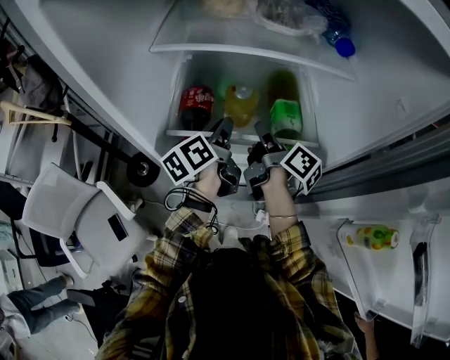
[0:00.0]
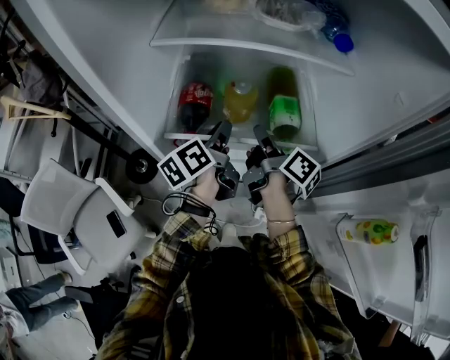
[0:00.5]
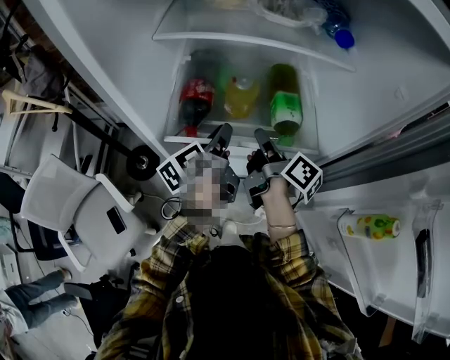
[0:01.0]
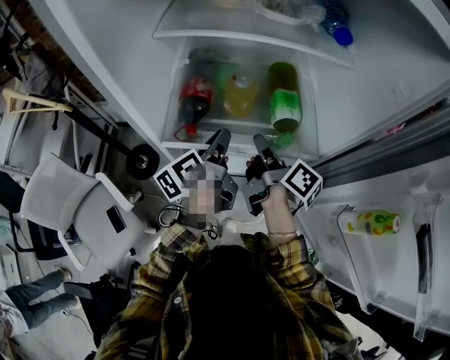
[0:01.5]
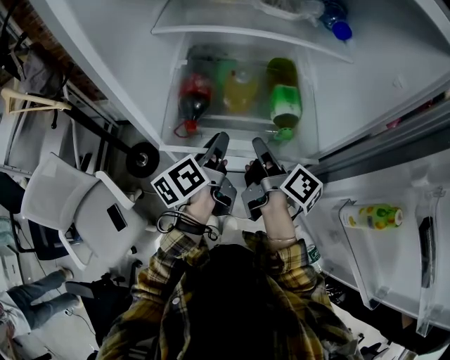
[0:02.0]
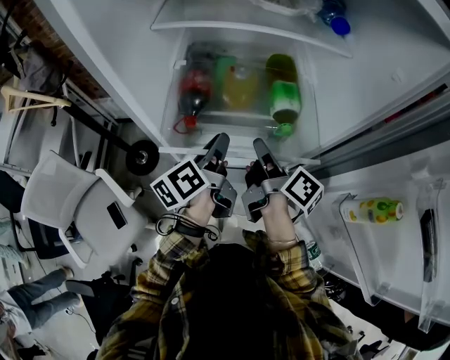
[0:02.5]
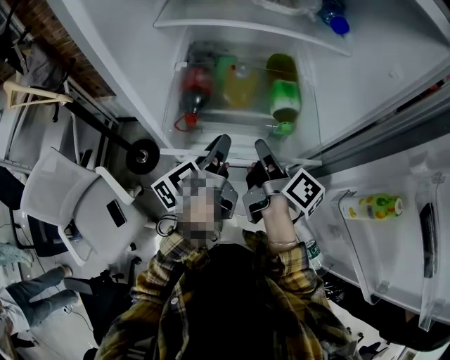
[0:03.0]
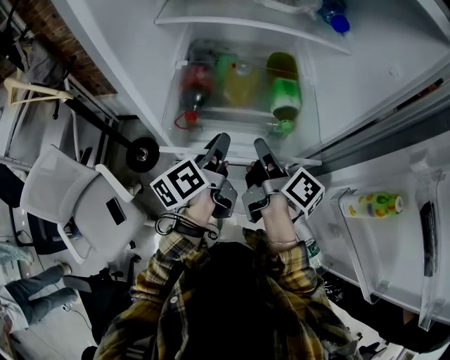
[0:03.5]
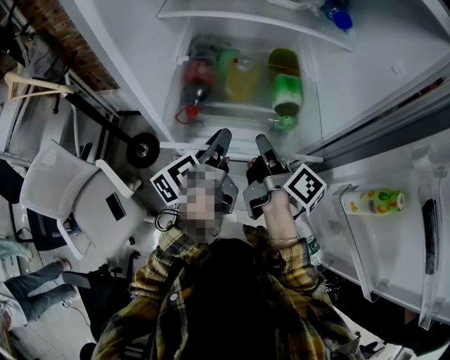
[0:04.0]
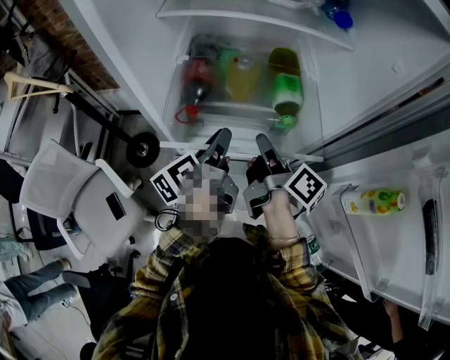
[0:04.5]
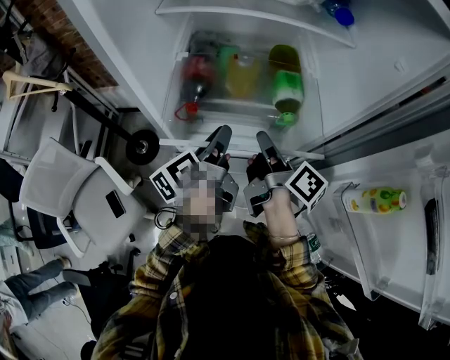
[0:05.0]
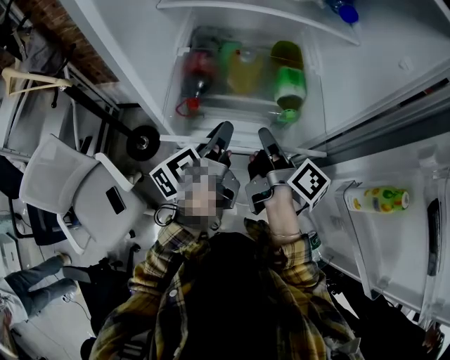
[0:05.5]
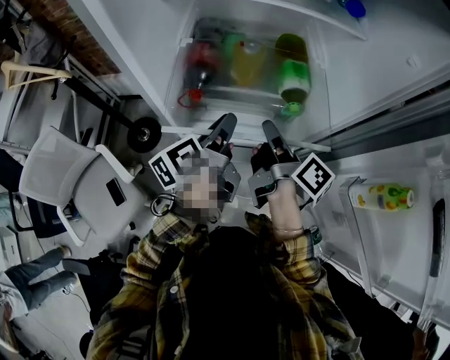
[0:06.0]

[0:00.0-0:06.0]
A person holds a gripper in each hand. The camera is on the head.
0:00.0 to 0:02.0: Both grippers travel together backward, about 10 cm.
0:02.0 to 0:04.0: The grippers make only small movements.
0:04.0 to 0:06.0: Both grippers stay about where they are.

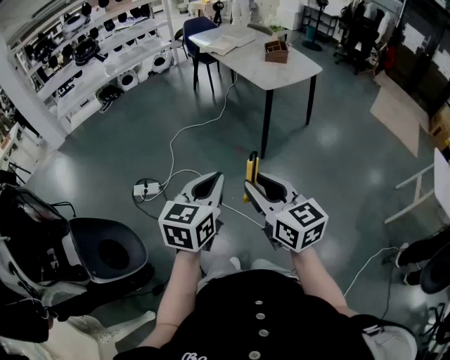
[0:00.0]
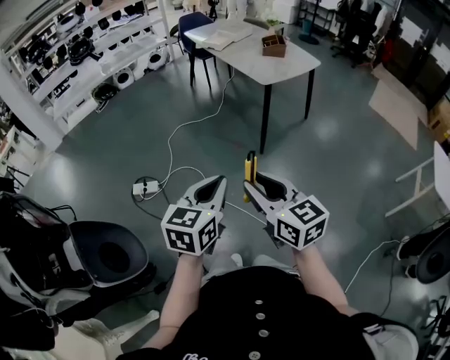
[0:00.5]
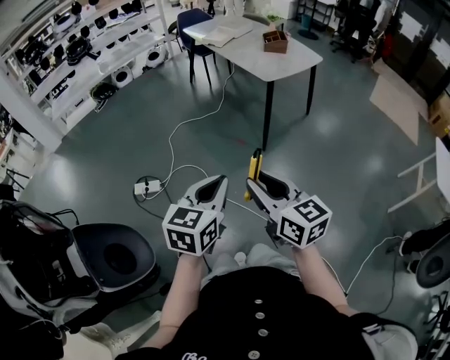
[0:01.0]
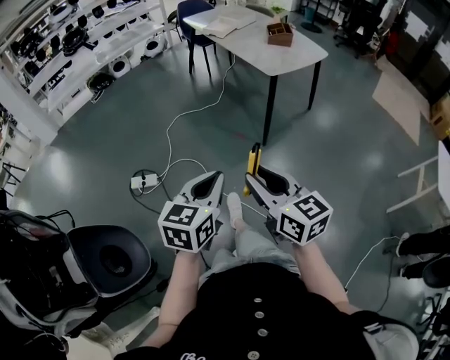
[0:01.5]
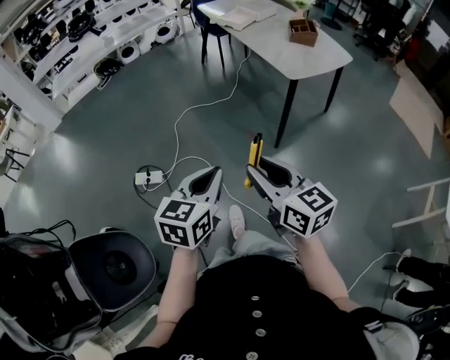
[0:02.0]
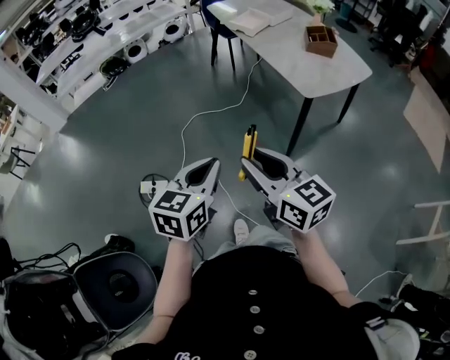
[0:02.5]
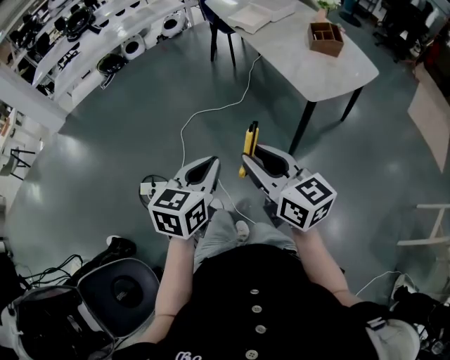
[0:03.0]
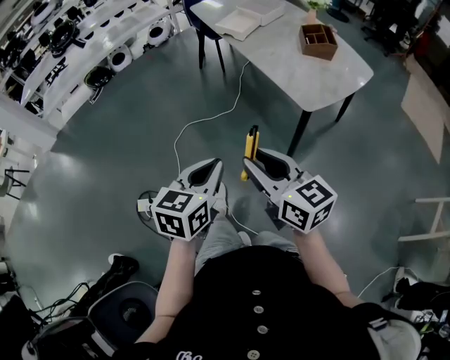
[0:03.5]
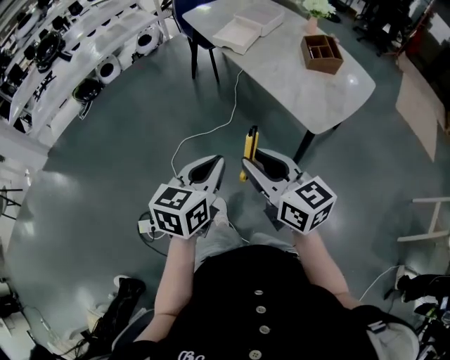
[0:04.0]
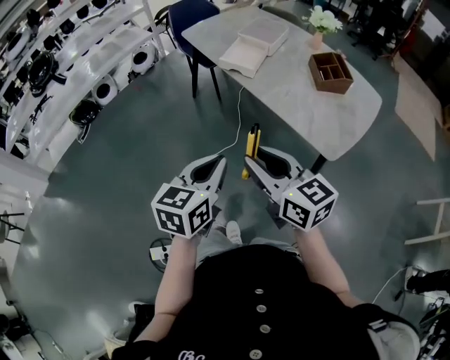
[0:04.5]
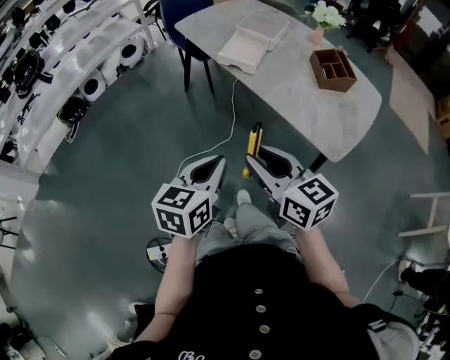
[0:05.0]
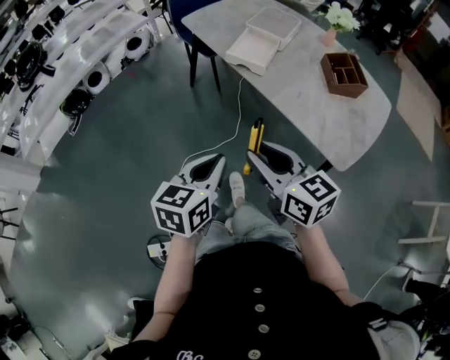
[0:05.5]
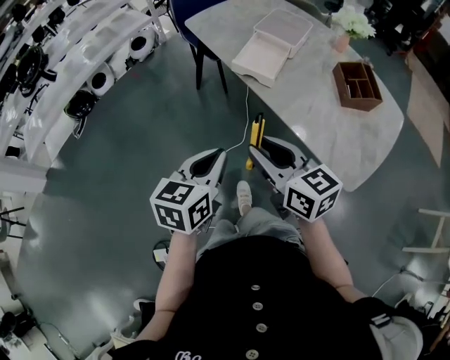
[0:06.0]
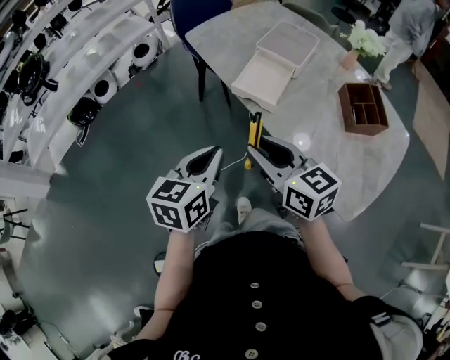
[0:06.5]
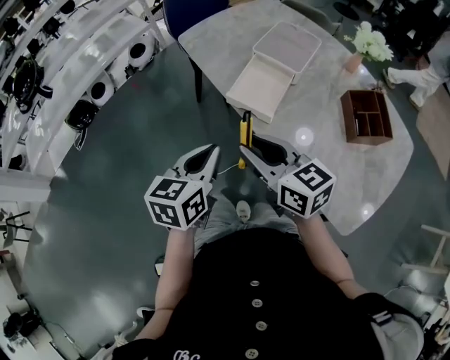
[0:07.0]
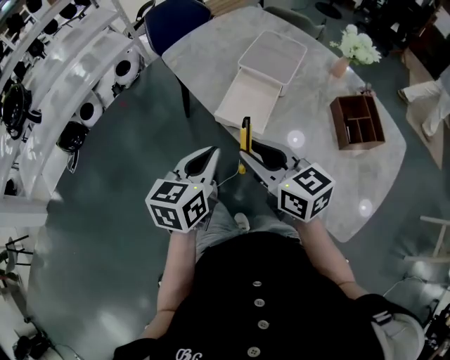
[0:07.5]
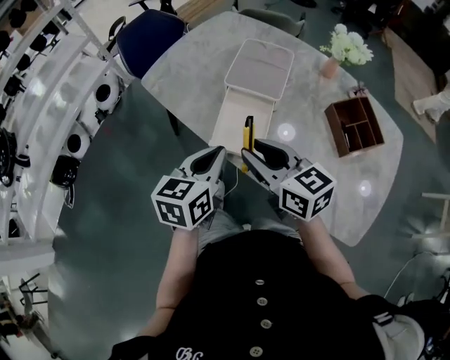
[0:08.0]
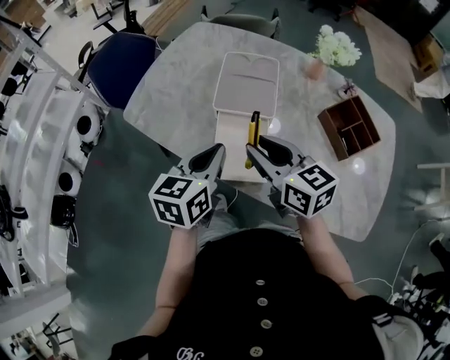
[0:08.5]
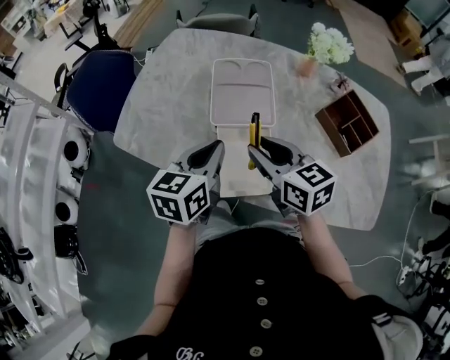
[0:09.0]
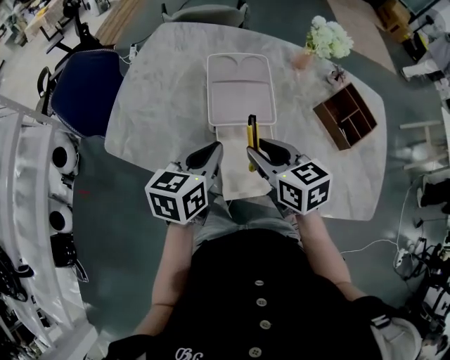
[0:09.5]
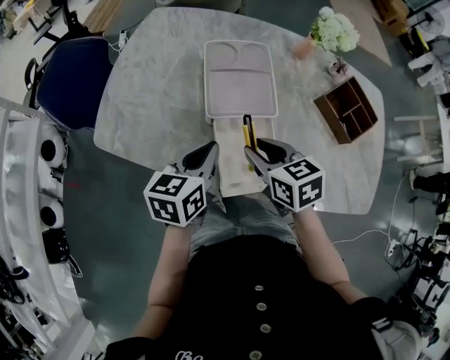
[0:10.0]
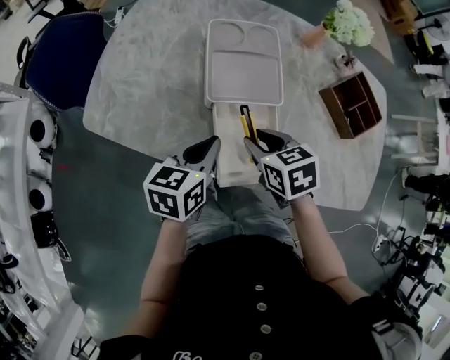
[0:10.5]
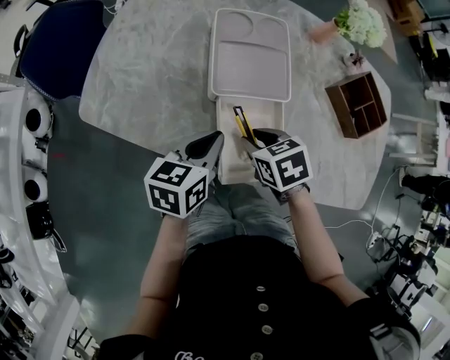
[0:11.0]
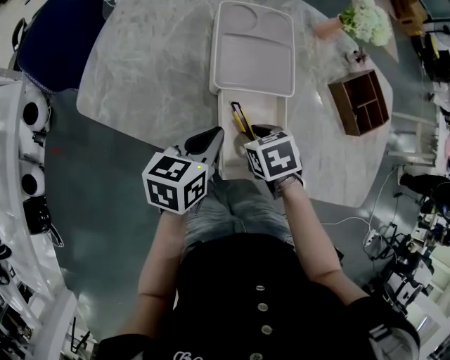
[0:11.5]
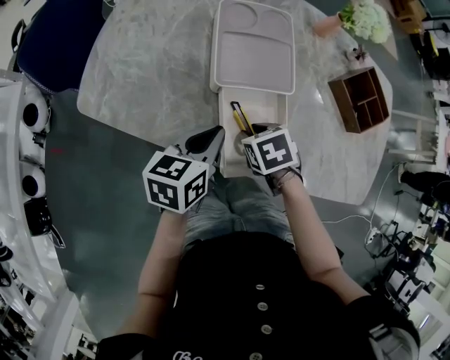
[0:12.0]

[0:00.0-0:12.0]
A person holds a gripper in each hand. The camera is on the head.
0:00.0 to 0:02.0: The grippers both shift forward by about 20 cm.
0:02.0 to 0:04.0: Both grippers are carried forward, roughly 40 cm.
0:04.0 to 0:06.0: The two grippers go roughly 30 cm forward.
0:06.0 to 0:08.0: Both grippers travel together forward, roughly 35 cm.
0:08.0 to 0:10.0: The right gripper moves about 20 cm, and turns by some 40 degrees. The left gripper moves approximately 20 cm, and turns by approximately 30 degrees.
0:10.0 to 0:12.0: The left gripper moves downward, about 5 cm, while the right gripper is displaced downward by about 10 cm, and tilts its fingers about 30 degrees downward.

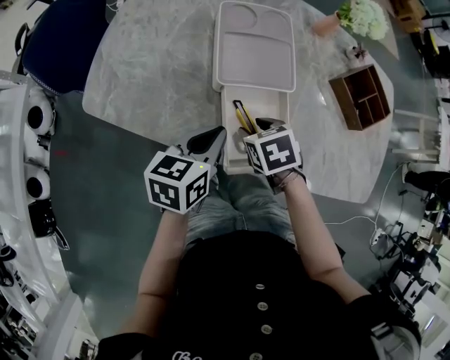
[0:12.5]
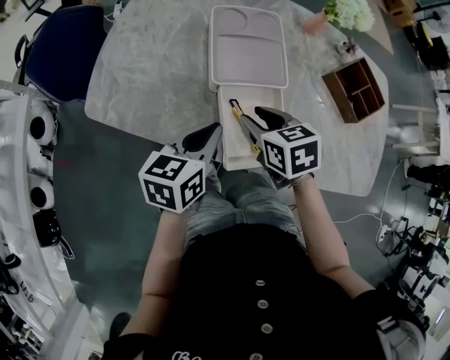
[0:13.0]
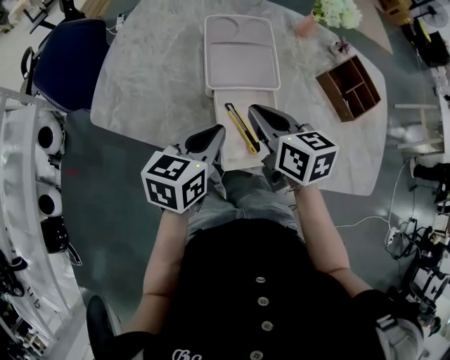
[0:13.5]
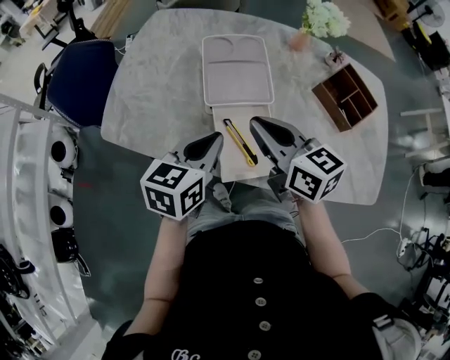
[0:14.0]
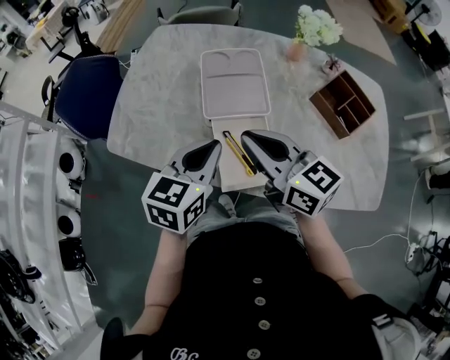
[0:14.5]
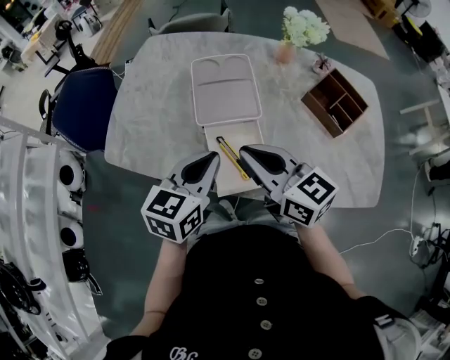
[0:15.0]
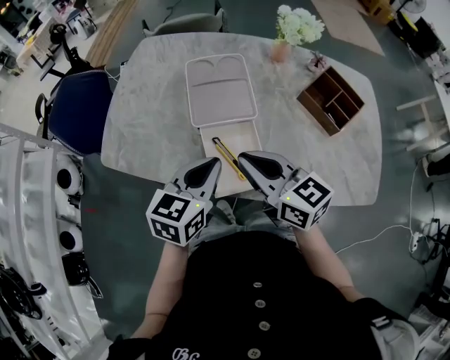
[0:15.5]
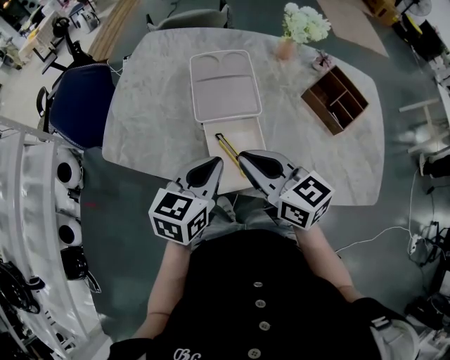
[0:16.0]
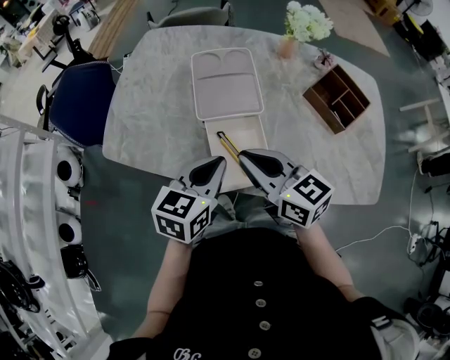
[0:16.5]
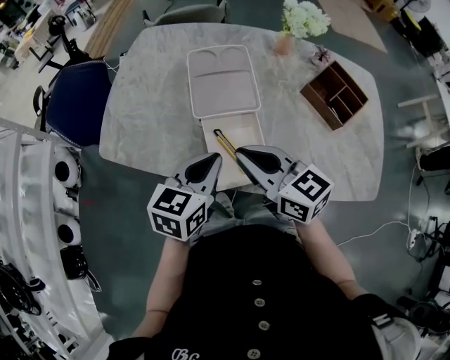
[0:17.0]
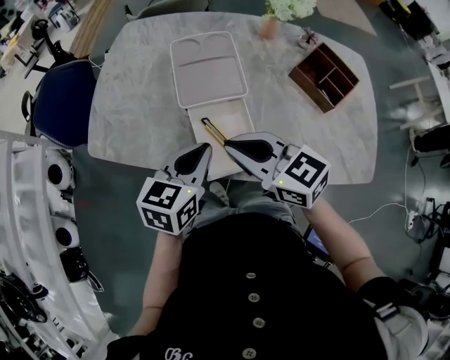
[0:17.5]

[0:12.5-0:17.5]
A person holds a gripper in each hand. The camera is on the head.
0:12.5 to 0:15.0: The right gripper goes some 20 cm upward, tips its fingers upward by about 60 degrees, and closes up. The left gripper travels upward by approximately 10 cm, and rotates some 20 degrees.
0:15.0 to 0:17.5: The grippers move only a little.

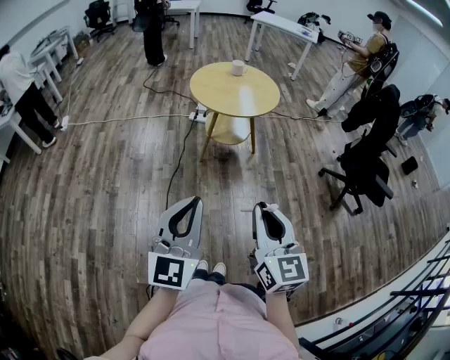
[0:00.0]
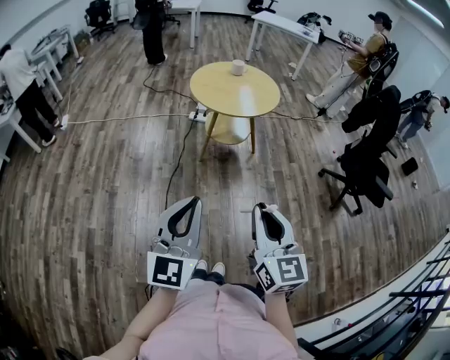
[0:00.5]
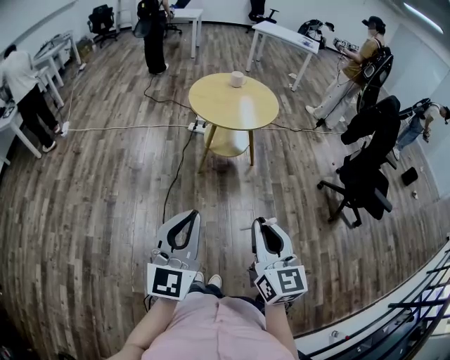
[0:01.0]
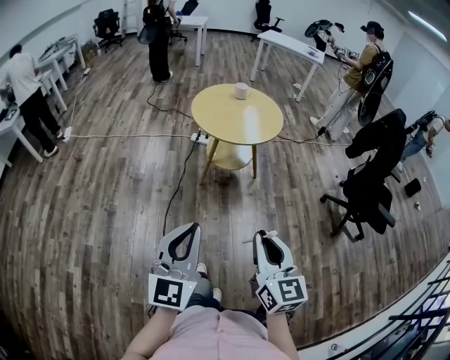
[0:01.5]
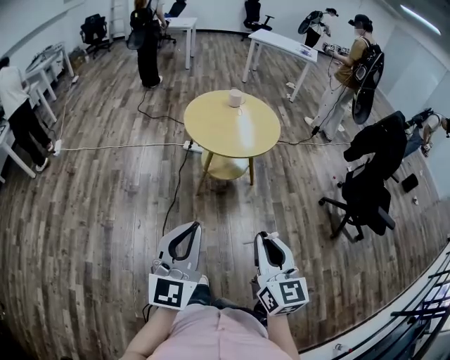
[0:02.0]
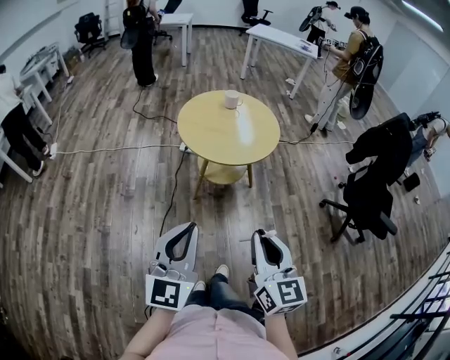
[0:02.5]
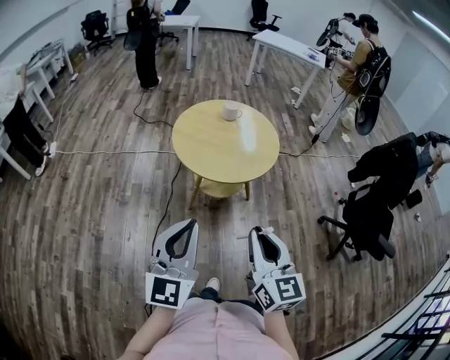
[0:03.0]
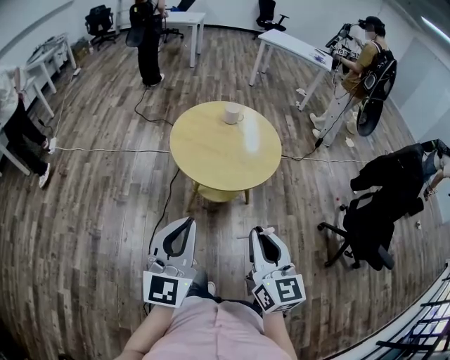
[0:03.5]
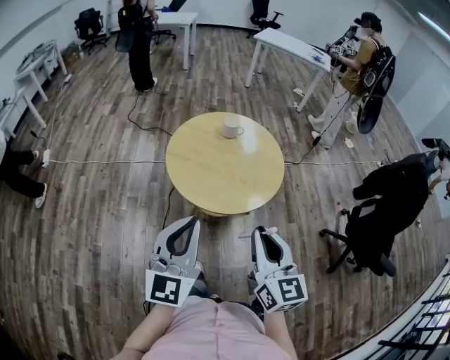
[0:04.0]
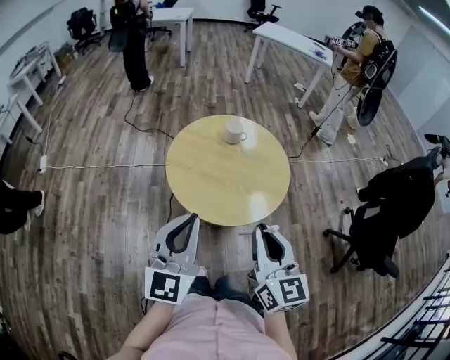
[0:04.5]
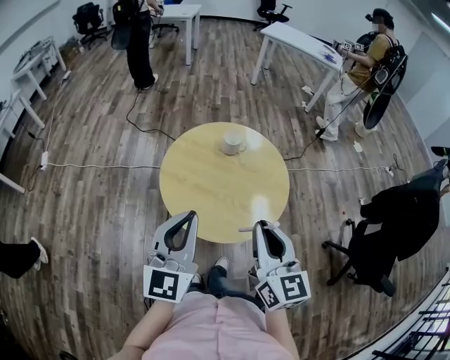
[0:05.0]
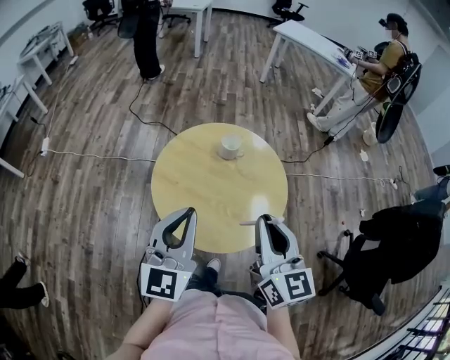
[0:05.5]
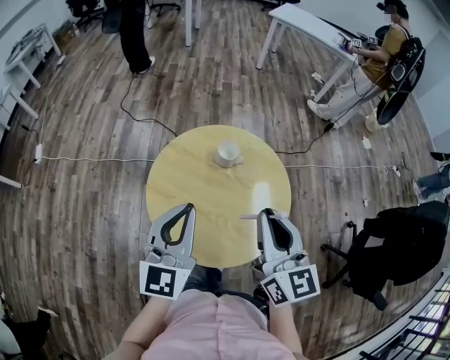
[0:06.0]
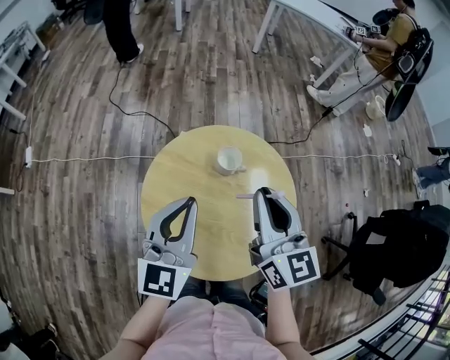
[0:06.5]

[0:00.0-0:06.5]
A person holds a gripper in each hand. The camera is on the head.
0:00.0 to 0:02.0: Both grippers travel together forward, roughly 15 cm.
0:02.0 to 0:04.5: The two grippers travel together, forward, approximately 40 cm.
0:04.5 to 0:06.5: The two grippers go some 35 cm forward.
